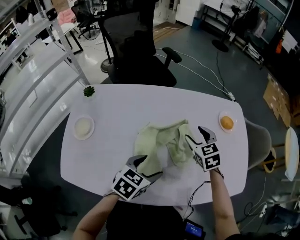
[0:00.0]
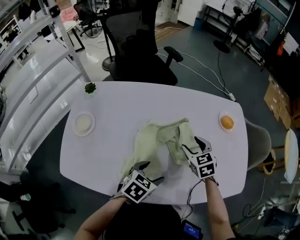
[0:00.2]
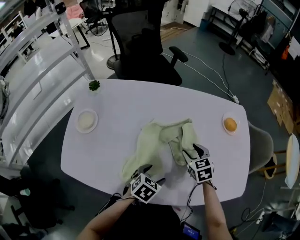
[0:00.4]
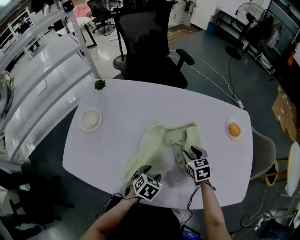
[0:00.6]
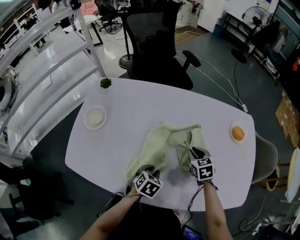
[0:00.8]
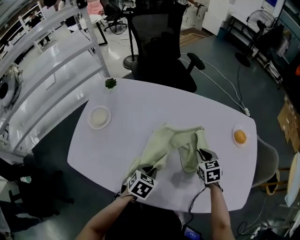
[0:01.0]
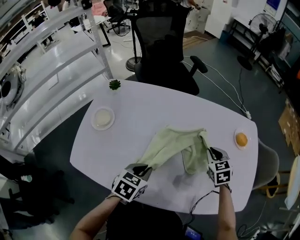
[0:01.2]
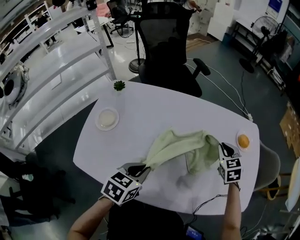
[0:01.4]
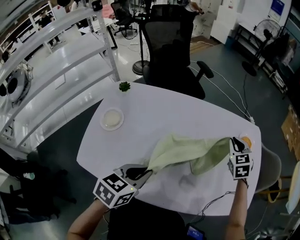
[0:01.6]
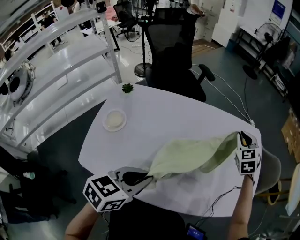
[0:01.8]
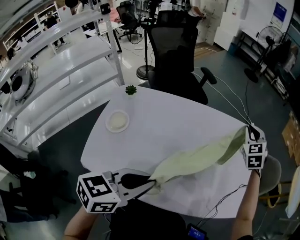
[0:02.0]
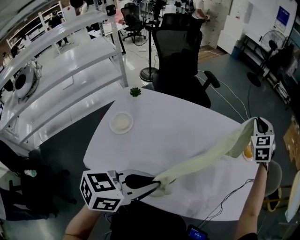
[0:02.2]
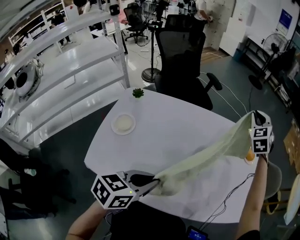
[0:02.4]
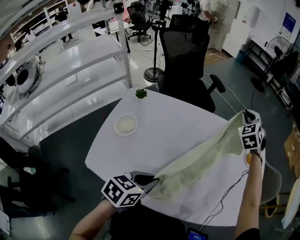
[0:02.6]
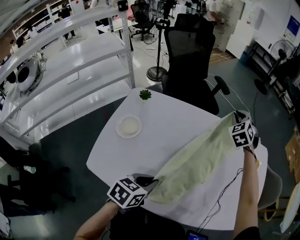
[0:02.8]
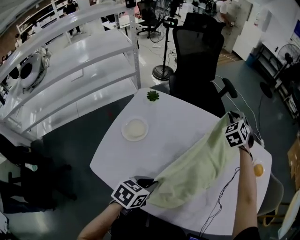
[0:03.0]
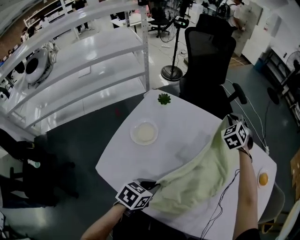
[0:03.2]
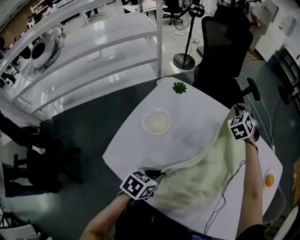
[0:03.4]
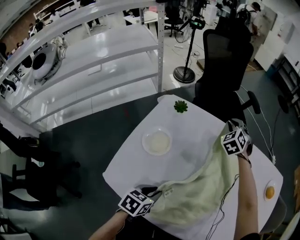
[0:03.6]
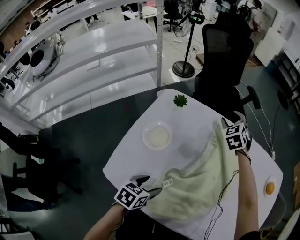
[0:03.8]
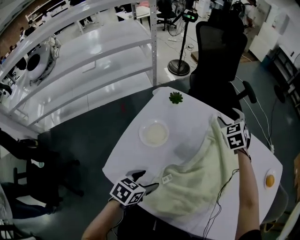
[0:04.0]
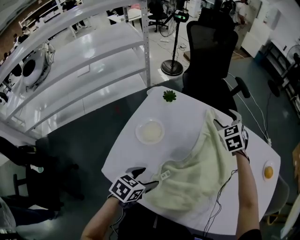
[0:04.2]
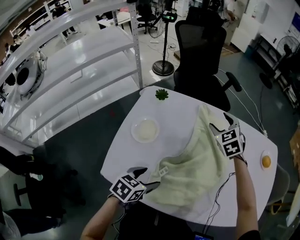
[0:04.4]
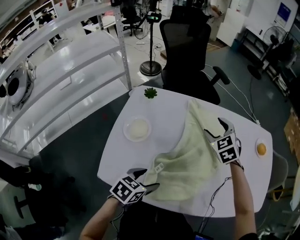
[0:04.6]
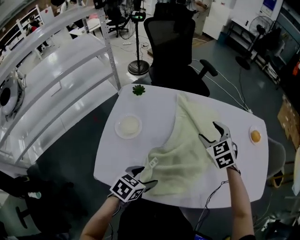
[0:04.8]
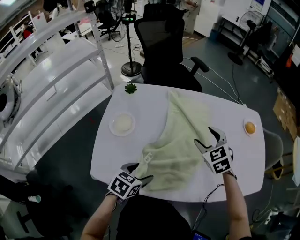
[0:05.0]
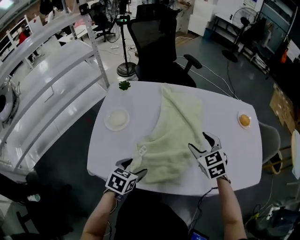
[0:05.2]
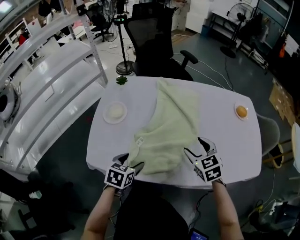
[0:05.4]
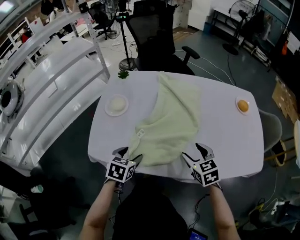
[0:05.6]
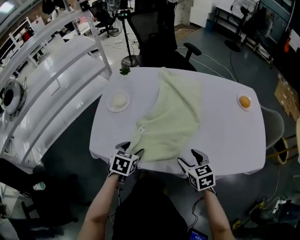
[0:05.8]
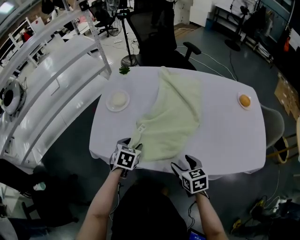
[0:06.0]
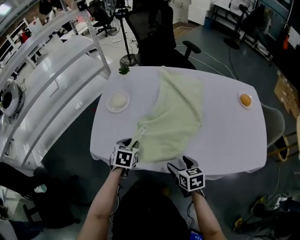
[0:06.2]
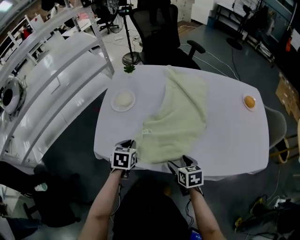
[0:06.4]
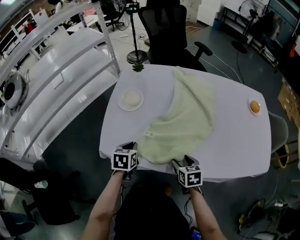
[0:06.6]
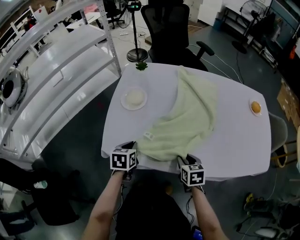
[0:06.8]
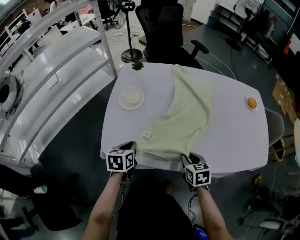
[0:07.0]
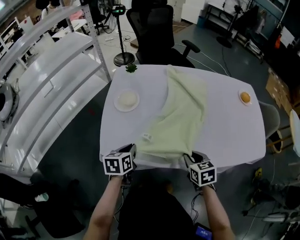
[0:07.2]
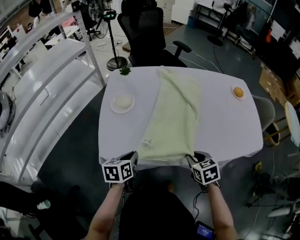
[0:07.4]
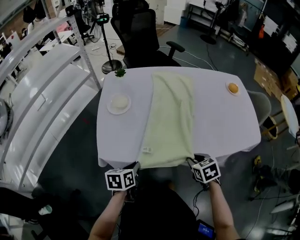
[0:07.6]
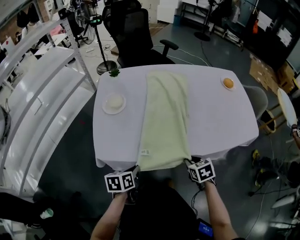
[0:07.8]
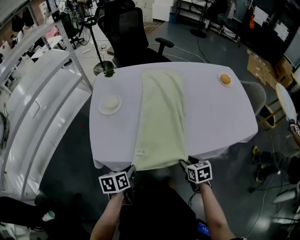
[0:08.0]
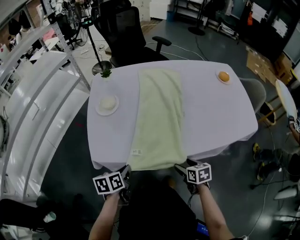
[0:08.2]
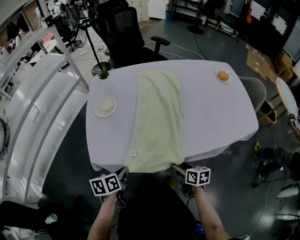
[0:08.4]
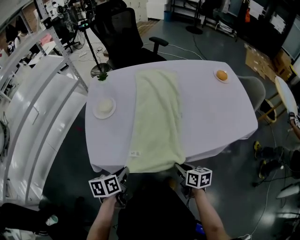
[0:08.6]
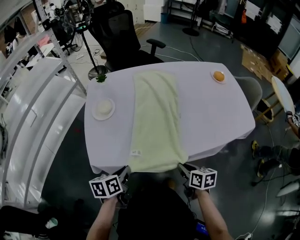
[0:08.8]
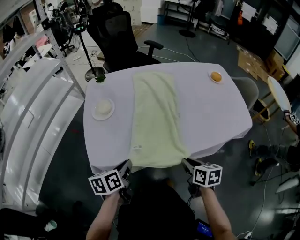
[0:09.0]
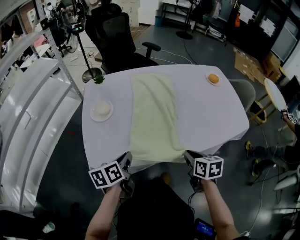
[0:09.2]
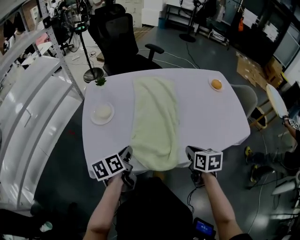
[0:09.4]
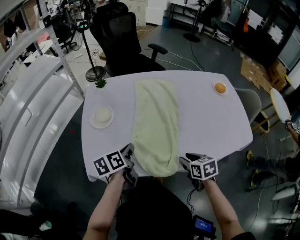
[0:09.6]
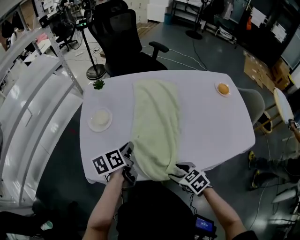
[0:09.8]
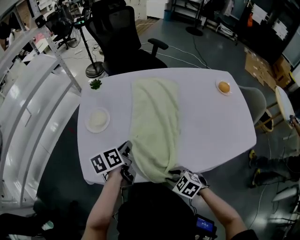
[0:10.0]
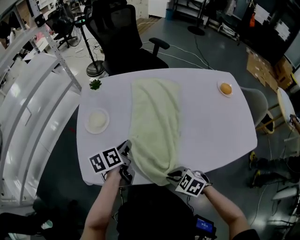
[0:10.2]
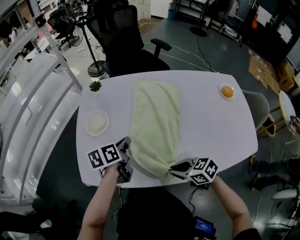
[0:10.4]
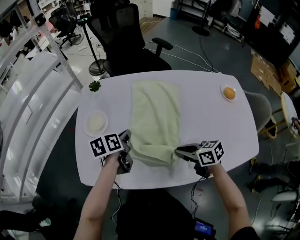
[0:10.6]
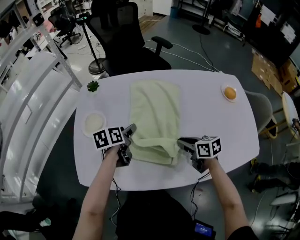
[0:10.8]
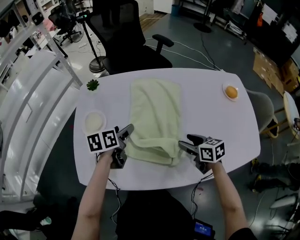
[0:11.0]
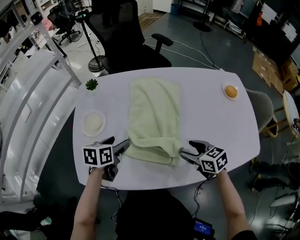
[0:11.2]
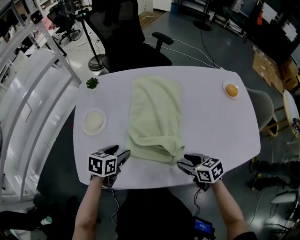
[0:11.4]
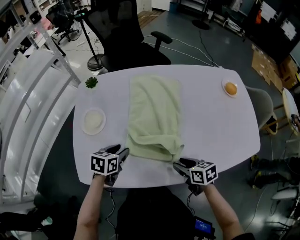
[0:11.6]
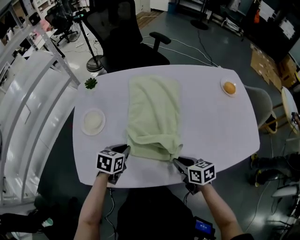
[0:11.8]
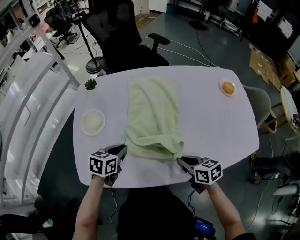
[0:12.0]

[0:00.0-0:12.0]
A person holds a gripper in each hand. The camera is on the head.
0:00.0 to 0:01.6: The left gripper travels to the left and backward by approximately 10 cm, moves roughly 15 cm downward and comes back, and closes its fingers. Meanwhile the right gripper travels upward and to the right by roughly 10 cm, and closes.
0:01.6 to 0:03.0: The right gripper goes some 25 cm to the left, and turns by roughly 30 degrees; the left gripper heads downward and to the left, covering roughly 10 cm.
0:03.0 to 0:04.4: The right gripper is displaced backward and to the left by roughly 15 cm, and opens. The left gripper travels to the left by some 10 cm, and opens up.
0:04.4 to 0:06.0: The right gripper ends up about 40 cm from where it was, and rotates around the line of its fingers by about 40 degrees, clockwise from behind, while the left gripper moves about 5 cm, and rotates roughly 30 degrees.
0:06.0 to 0:07.6: The left gripper heads backward and to the left, covering about 10 cm, turns by some 30 degrees, and closes. Meanwhile the right gripper reaches about 5 cm downward, then returns, and closes its fingers.
0:07.6 to 0:09.0: The right gripper moves roughly 10 cm downward and comes back, turns by roughly 40 degrees, and opens and closes again. Meanwhile the left gripper is displaced upward by about 5 cm.
0:09.0 to 0:10.4: The right gripper reaches approximately 10 cm downward, then returns, changes its angle by some 50 degrees, and opens, then closes once more, while the left gripper moves about 20 cm.
0:10.4 to 0:12.0: The left gripper goes approximately 5 cm downward, moves some 5 cm forward and comes back, turns by roughly 40 degrees, and opens and closes again. Meanwhile the right gripper shifts roughly 5 cm to the right, travels forward and back again, some 15 cm each way, turns by roughly 30 degrees, and opens, then closes again.

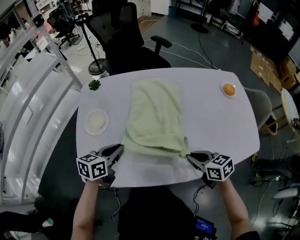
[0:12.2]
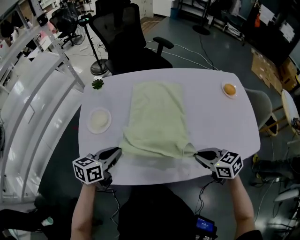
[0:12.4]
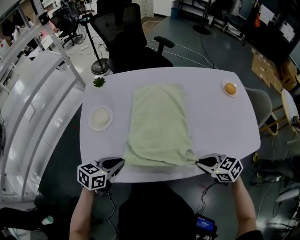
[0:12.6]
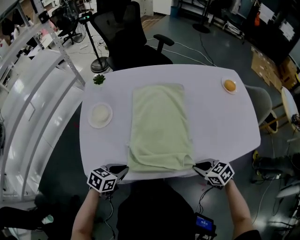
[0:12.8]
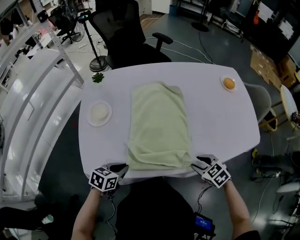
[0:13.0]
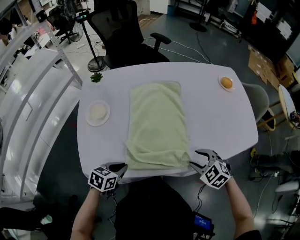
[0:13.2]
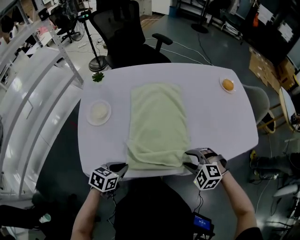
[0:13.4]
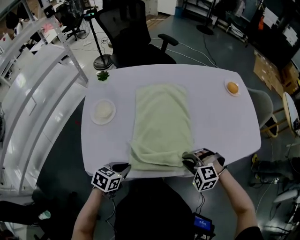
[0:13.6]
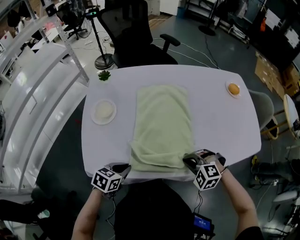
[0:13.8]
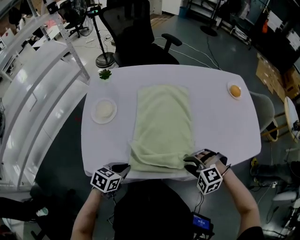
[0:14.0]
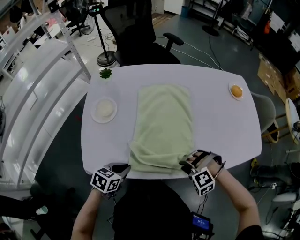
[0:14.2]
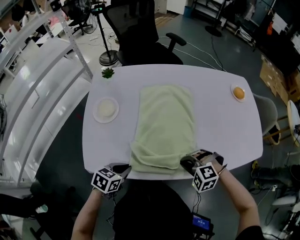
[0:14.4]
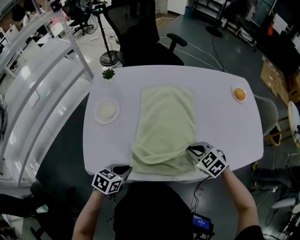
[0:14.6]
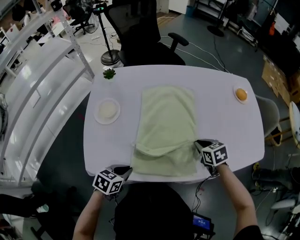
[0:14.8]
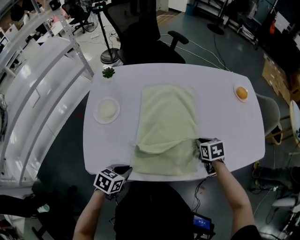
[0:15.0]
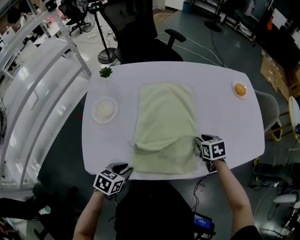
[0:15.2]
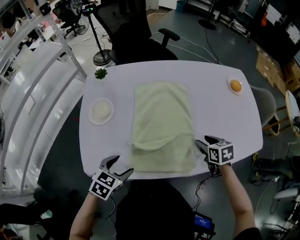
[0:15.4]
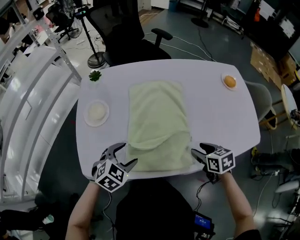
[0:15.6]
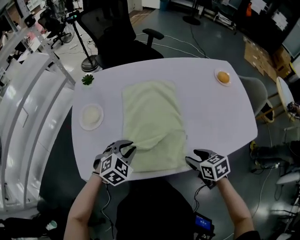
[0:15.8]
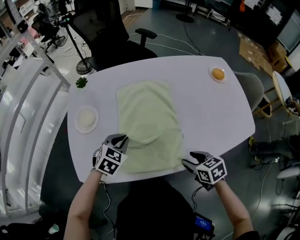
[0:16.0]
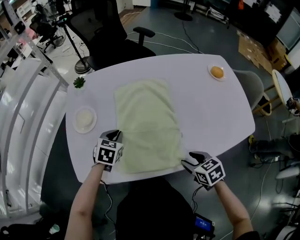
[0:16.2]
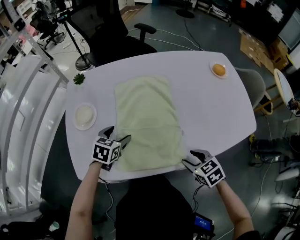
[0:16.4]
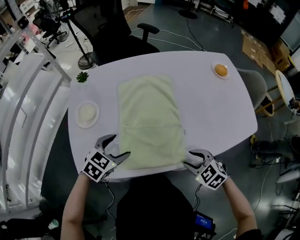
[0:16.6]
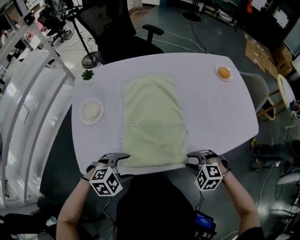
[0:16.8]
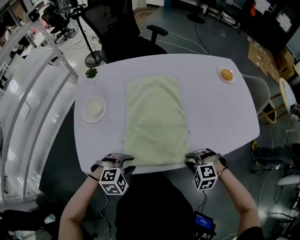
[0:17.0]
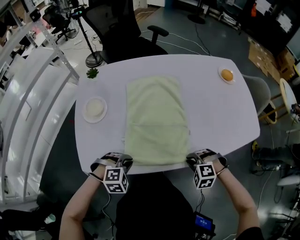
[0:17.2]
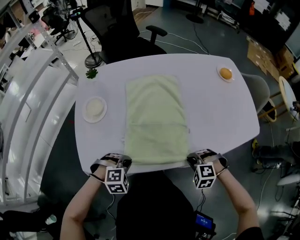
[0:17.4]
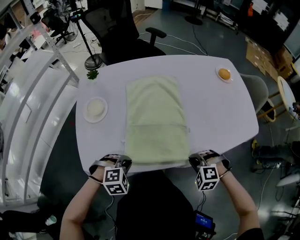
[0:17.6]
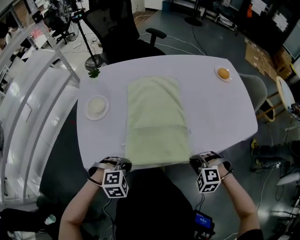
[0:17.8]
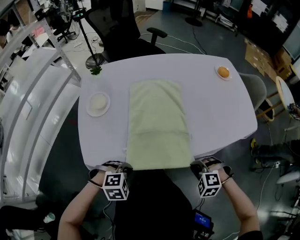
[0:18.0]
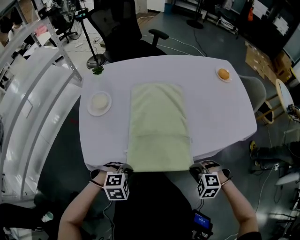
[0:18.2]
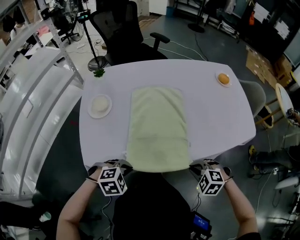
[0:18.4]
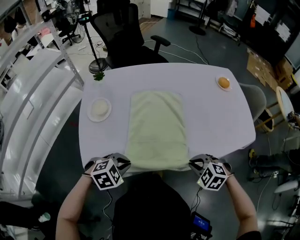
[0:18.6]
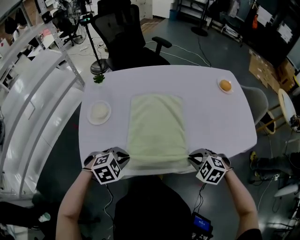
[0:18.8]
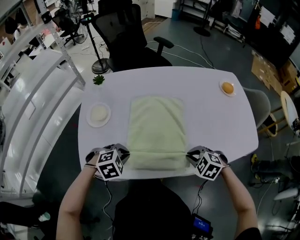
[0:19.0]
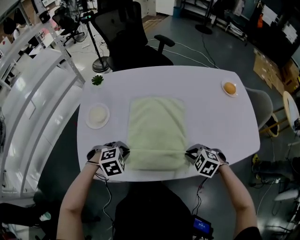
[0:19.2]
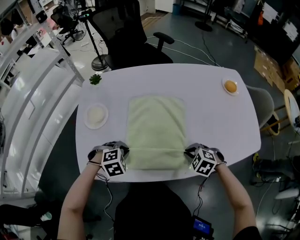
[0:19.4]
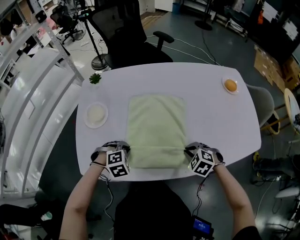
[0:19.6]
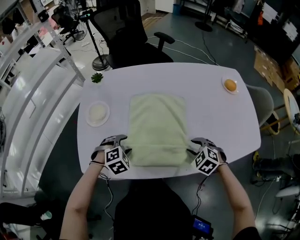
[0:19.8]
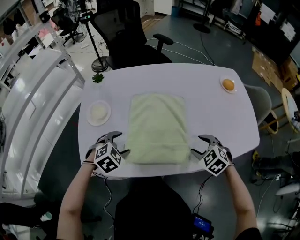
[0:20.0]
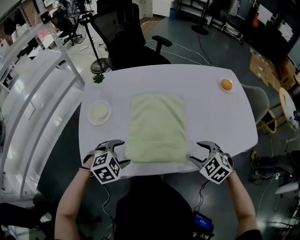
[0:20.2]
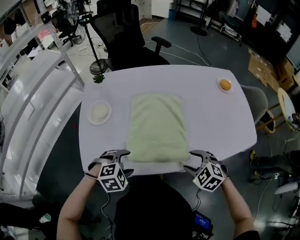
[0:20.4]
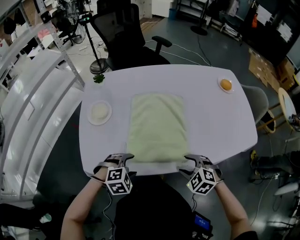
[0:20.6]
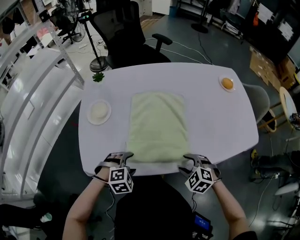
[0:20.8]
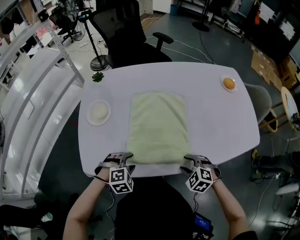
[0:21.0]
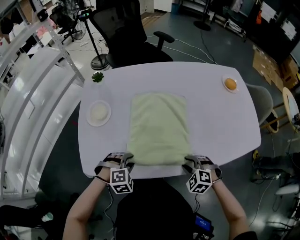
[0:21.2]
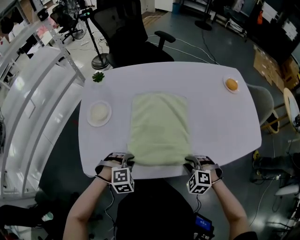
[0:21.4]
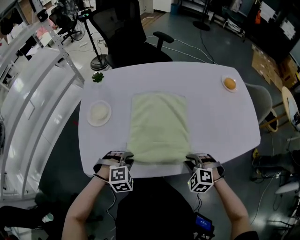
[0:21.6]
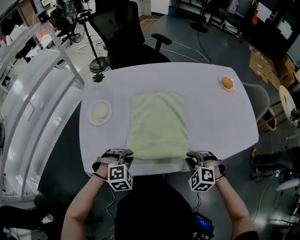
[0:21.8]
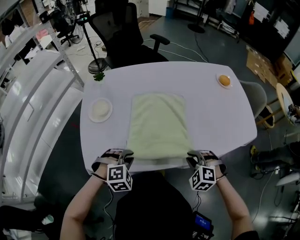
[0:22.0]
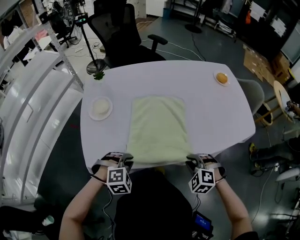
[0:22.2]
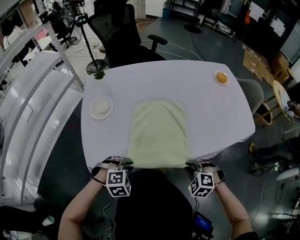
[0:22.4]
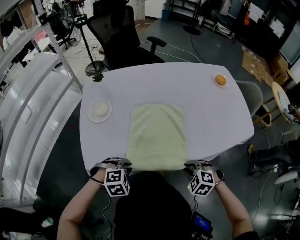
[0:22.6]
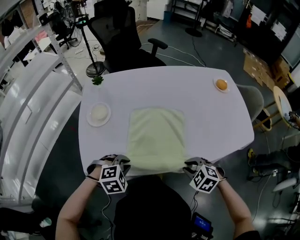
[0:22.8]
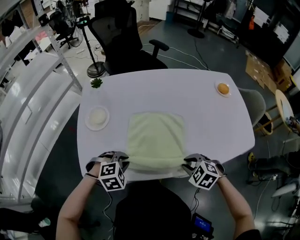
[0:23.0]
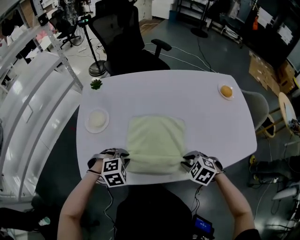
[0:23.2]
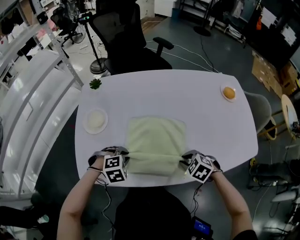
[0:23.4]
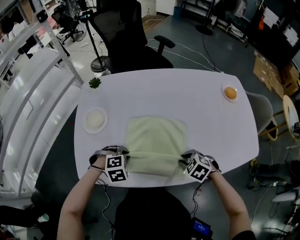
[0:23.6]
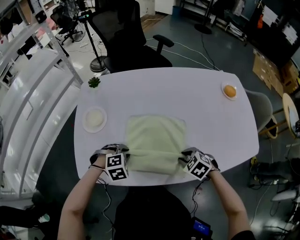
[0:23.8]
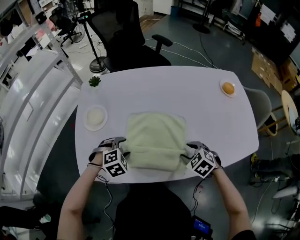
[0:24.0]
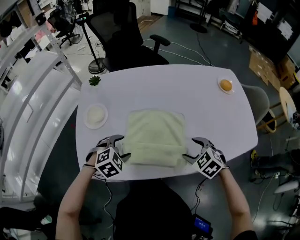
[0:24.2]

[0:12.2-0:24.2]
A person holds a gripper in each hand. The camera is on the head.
0:12.2 to 0:13.8: The left gripper travels backward and downward by about 15 cm, and swivels roughly 20 degrees, while the right gripper is displaced backward by roughly 5 cm, rotates around the line of its fingers by approximately 70 degrees, counterclockwise from behind, and opens, then closes once more.
0:13.8 to 0:15.2: The right gripper goes about 15 cm forward and to the right, rotates around the line of its fingers by approximately 70 degrees, clockwise from behind, and opens its fingers.
0:15.2 to 0:16.6: The left gripper travels forward and upward by roughly 10 cm, rotates some 30 degrees, and opens up, while the right gripper travels backward by approximately 15 cm, and swivels about 40 degrees.
0:16.6 to 0:18.2: The right gripper goes approximately 10 cm backward, changes its angle by approximately 30 degrees, and closes up, while the left gripper shifts roughly 20 cm backward, turns by roughly 40 degrees, and closes up.
0:18.2 to 0:19.8: Both grippers move forward, about 20 cm. The left gripper rotates about 20 degrees, and opens its fingers. The right gripper turns by some 20 degrees, and opens its fingers.
0:19.8 to 0:21.2: Both grippers travel together backward, some 10 cm.
0:21.2 to 0:22.6: The grippers both shift backward by about 5 cm.
0:22.6 to 0:24.2: Both grippers travel together forward, some 15 cm. The right gripper opens; the left gripper opens up.
